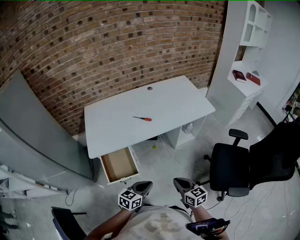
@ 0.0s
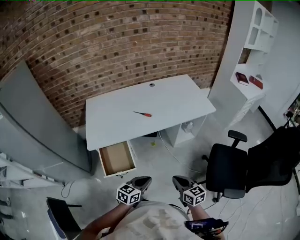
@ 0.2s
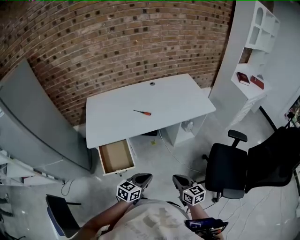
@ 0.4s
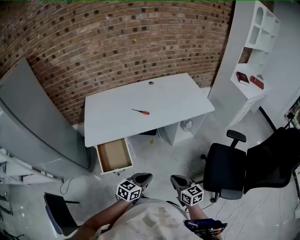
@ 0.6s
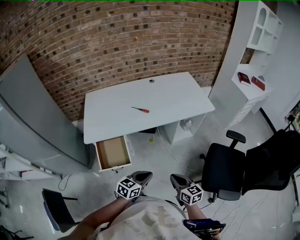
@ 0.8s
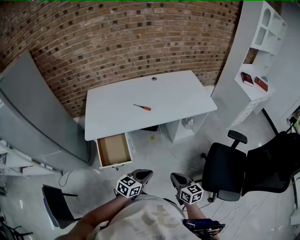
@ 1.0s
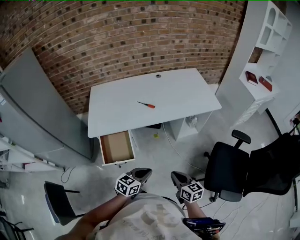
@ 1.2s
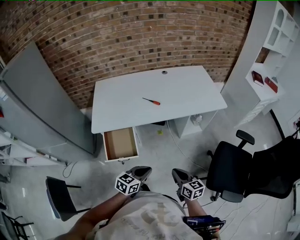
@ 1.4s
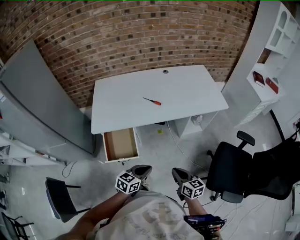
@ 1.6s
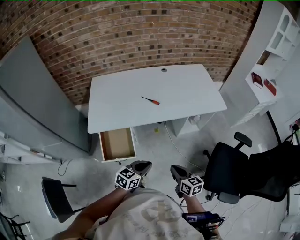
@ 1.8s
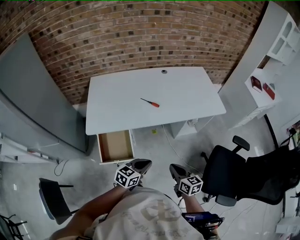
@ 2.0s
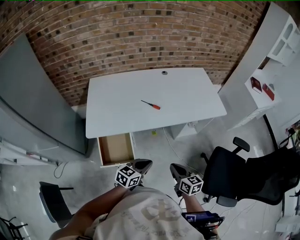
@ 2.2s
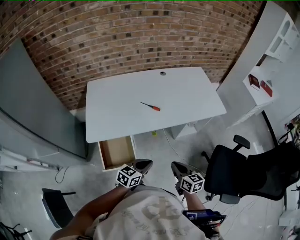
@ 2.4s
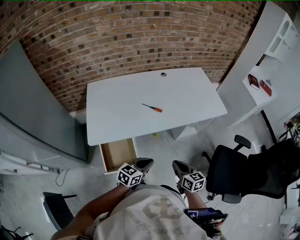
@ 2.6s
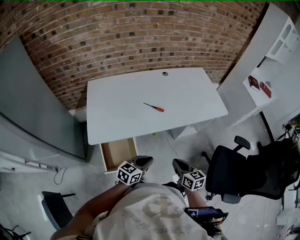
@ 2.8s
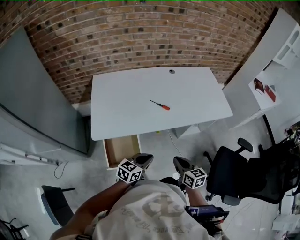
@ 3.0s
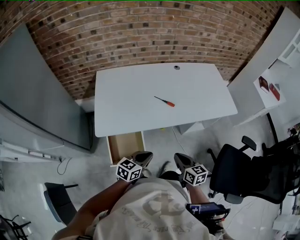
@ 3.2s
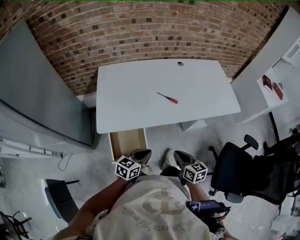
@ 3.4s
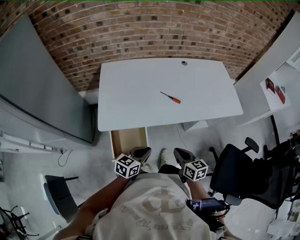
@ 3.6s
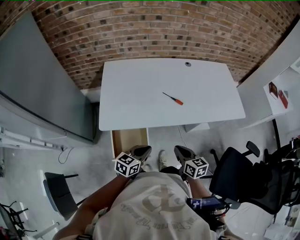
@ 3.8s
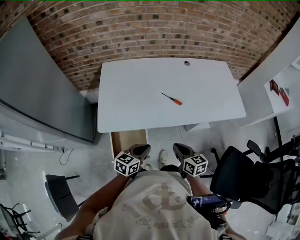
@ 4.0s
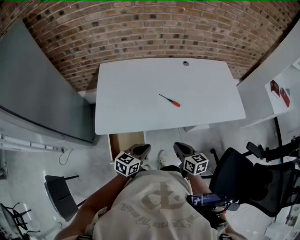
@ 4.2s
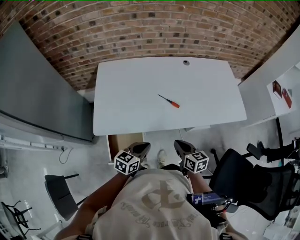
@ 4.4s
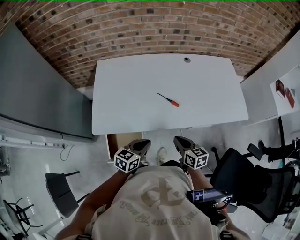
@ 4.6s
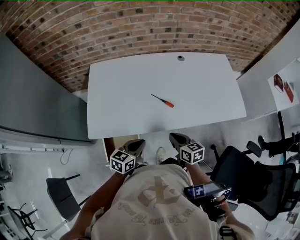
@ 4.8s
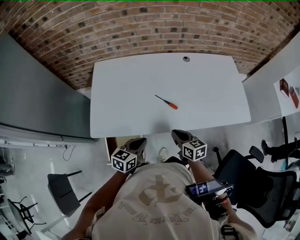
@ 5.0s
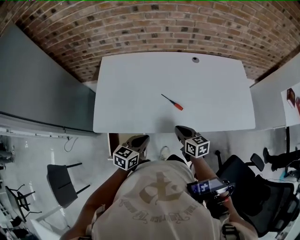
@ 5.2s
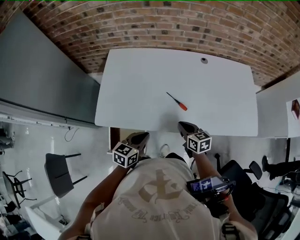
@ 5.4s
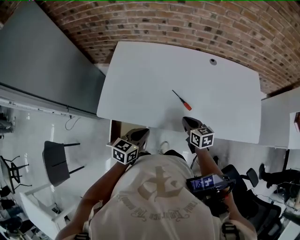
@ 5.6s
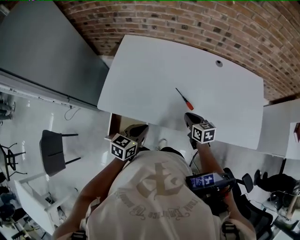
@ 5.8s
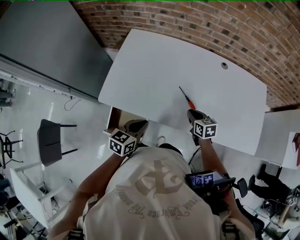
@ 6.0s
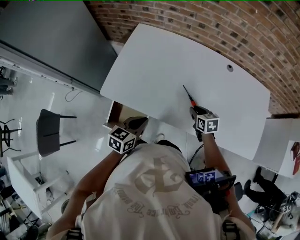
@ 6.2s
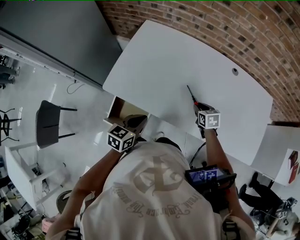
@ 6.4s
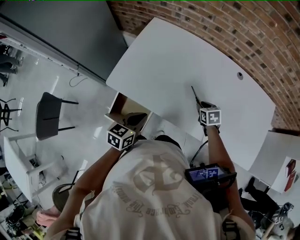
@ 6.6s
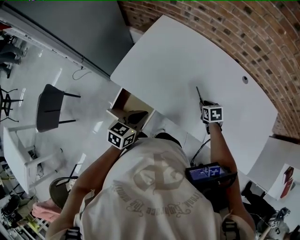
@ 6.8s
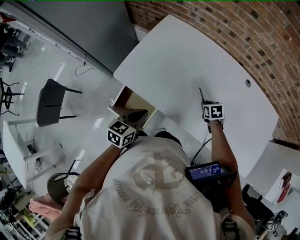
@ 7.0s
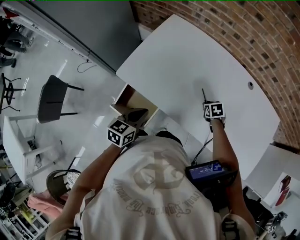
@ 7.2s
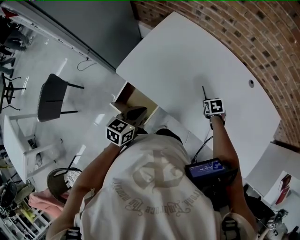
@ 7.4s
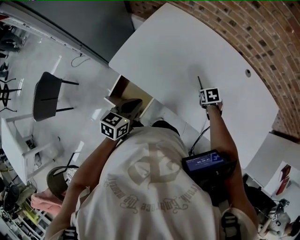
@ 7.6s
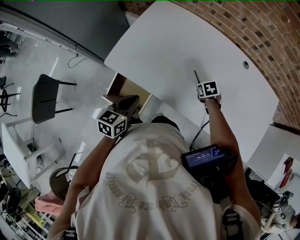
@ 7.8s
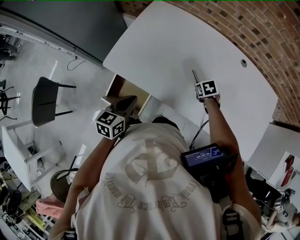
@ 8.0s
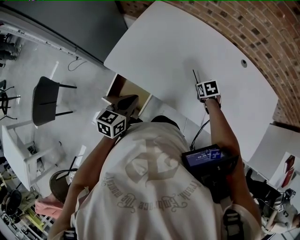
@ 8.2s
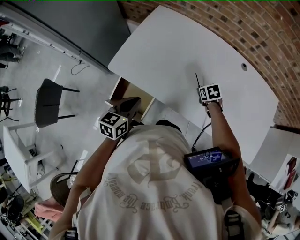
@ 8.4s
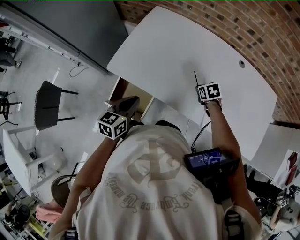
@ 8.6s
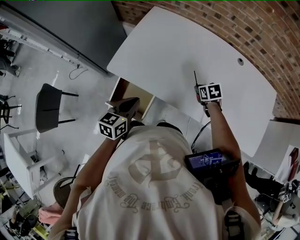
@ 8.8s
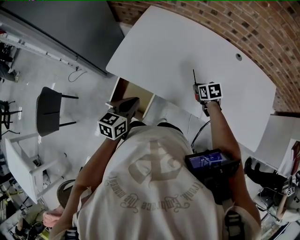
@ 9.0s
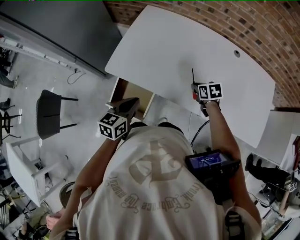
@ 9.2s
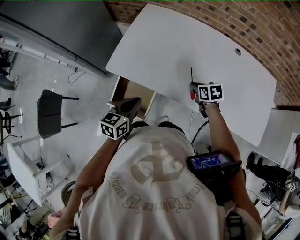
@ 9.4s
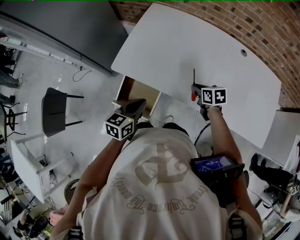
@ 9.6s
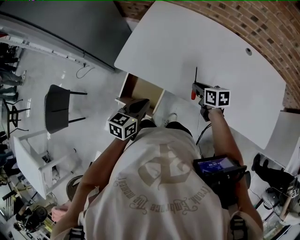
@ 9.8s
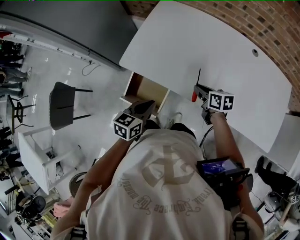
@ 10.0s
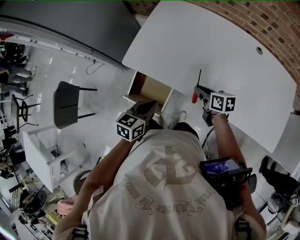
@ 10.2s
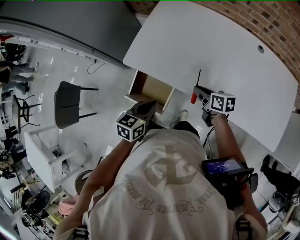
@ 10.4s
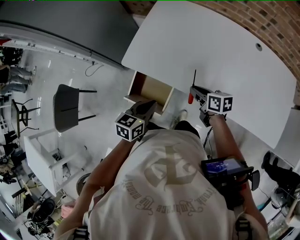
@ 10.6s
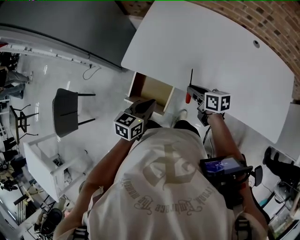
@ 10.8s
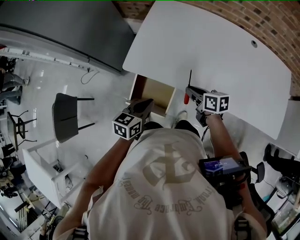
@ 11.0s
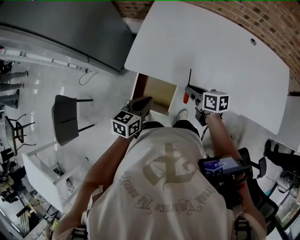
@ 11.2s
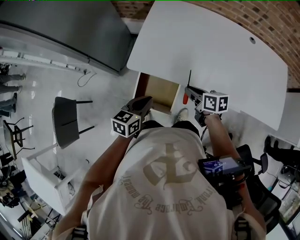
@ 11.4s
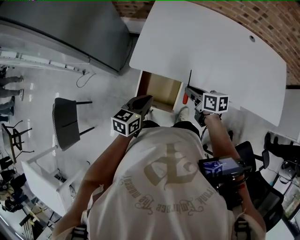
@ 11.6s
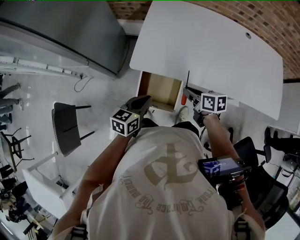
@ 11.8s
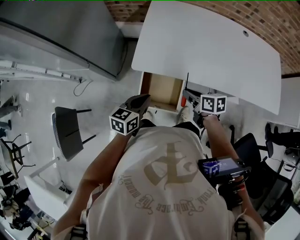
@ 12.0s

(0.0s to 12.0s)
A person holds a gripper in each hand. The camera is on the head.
0.0s - 1.6s: The grippers make only small movements.
1.6s - 3.0s: The grippers both shift forward and to the left by about 15 cm.
3.0s - 4.4s: Both grippers move forward, about 10 cm.
4.4s - 6.0s: The right gripper heads forward, covering roughly 20 cm, and rotates roughly 30 degrees, while the left gripper heads forward, covering approximately 10 cm, and turns by about 20 degrees.
6.0s - 7.6s: The left gripper shifts about 5 cm to the left, while the right gripper moves forward and downward, about 10 cm, and tips its fingers downward by approximately 30 degrees.
7.6s - 9.0s: The right gripper is displaced upward by some 5 cm.
9.0s - 10.4s: The right gripper goes some 10 cm to the left and backward, and turns by approximately 40 degrees.
10.4s - 12.0s: Both grippers move to the left, some 20 cm.

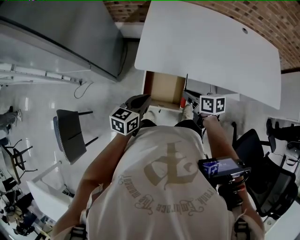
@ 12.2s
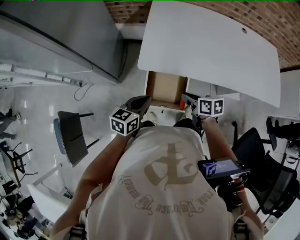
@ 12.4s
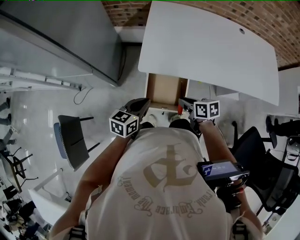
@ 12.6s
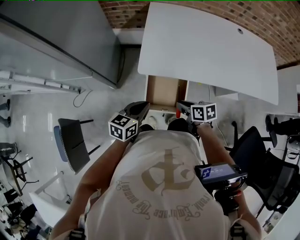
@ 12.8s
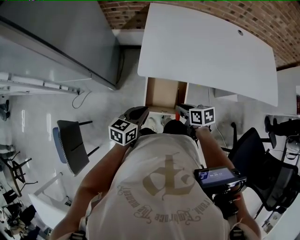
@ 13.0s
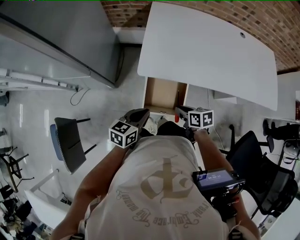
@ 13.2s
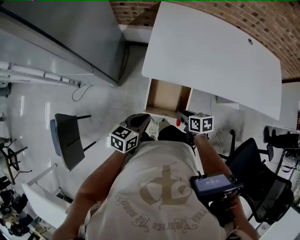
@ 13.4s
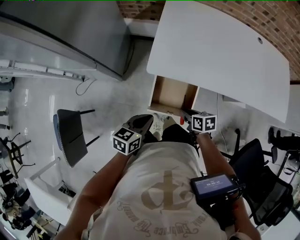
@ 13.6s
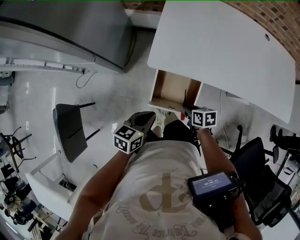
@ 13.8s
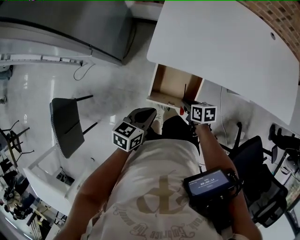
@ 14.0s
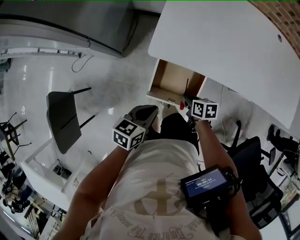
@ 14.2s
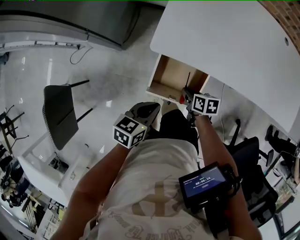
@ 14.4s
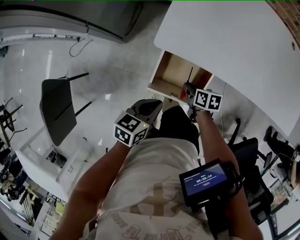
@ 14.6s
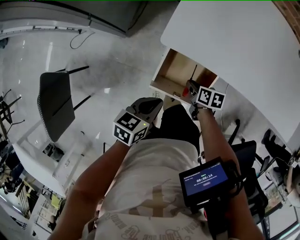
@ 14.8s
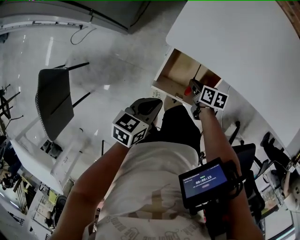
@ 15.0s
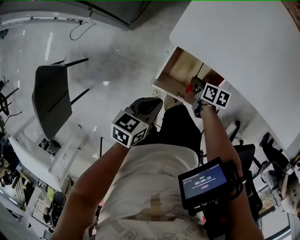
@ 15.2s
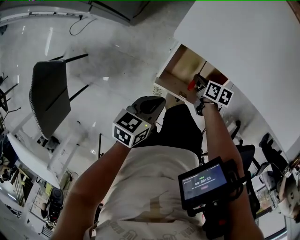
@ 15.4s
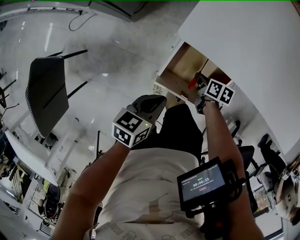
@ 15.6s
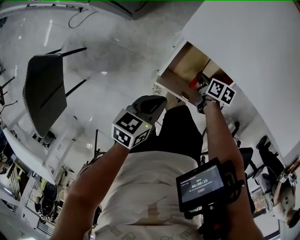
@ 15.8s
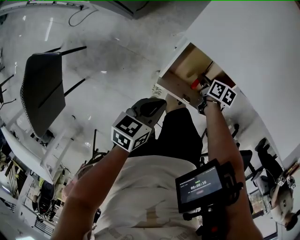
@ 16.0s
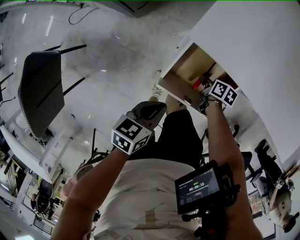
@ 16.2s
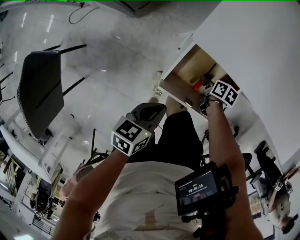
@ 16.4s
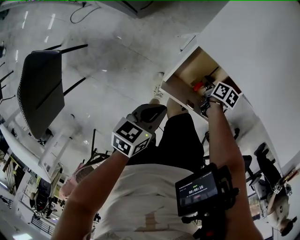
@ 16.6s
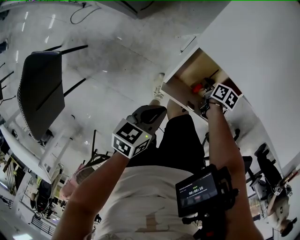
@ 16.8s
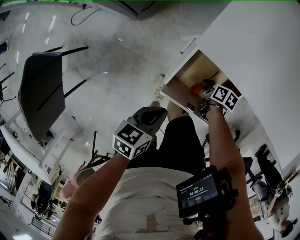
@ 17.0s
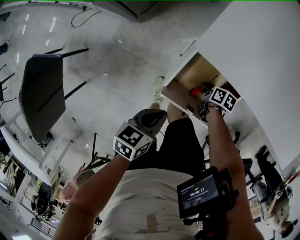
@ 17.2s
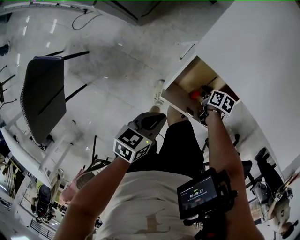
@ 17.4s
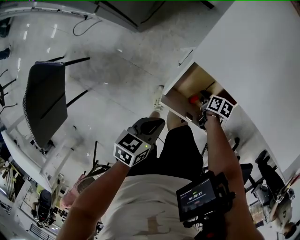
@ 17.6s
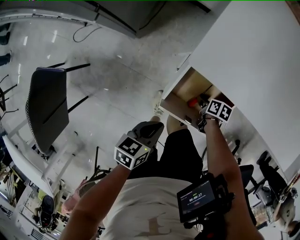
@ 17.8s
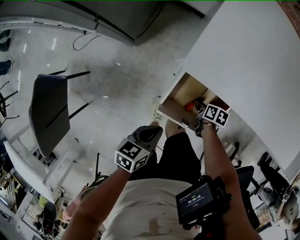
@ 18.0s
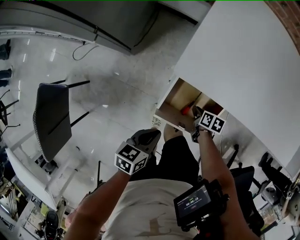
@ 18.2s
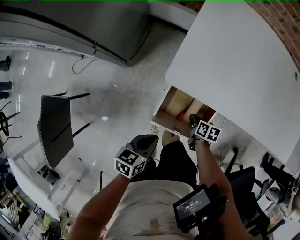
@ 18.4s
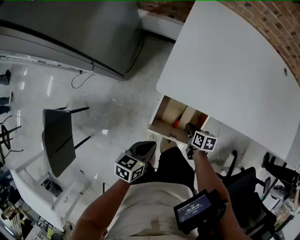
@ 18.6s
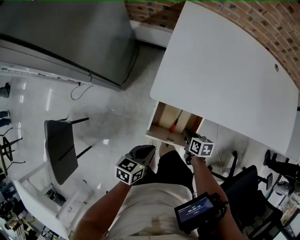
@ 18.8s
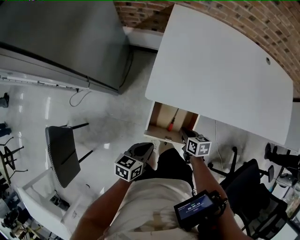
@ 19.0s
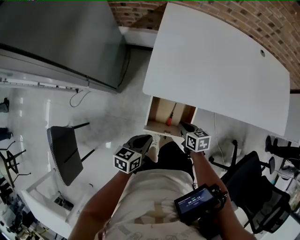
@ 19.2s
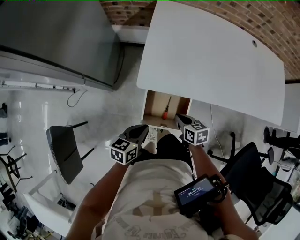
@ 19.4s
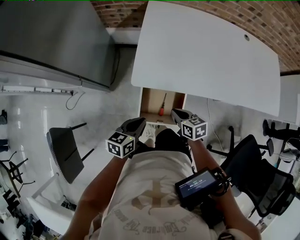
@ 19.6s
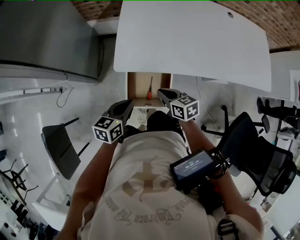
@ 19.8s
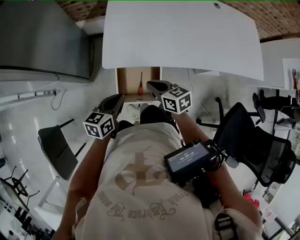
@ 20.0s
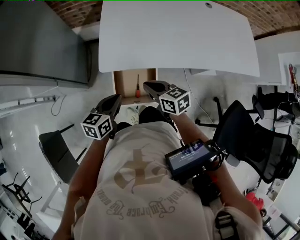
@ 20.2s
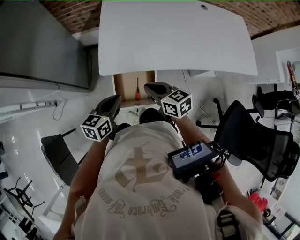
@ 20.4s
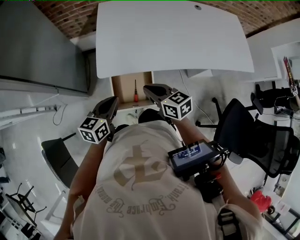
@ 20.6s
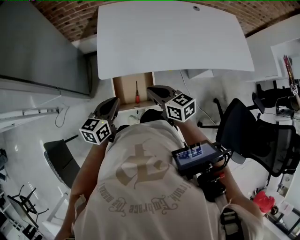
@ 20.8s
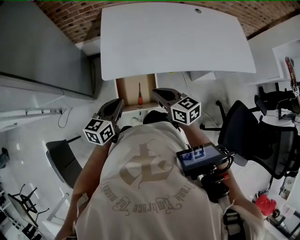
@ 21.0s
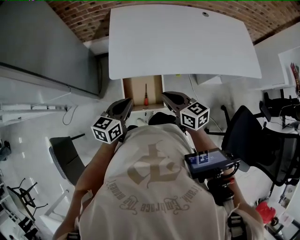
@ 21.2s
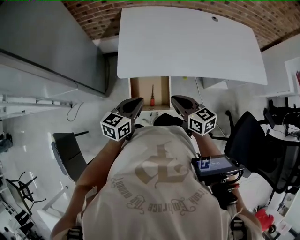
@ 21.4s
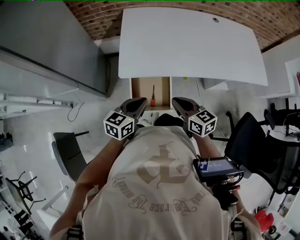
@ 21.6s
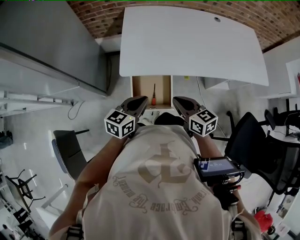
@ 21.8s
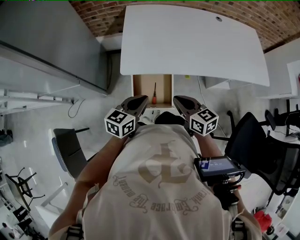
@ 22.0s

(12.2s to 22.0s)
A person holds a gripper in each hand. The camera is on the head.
12.2s - 13.6s: The left gripper goes some 5 cm to the left. The right gripper heads downward and to the left, covering roughly 10 cm.
13.6s - 15.0s: The right gripper heads downward and forward, covering roughly 20 cm, while the left gripper goes roughly 10 cm downward.
15.0s - 16.4s: The left gripper goes approximately 10 cm downward, while the right gripper travels downward by about 10 cm.
16.4s - 17.8s: There are only small adjustments of the grippers.
17.8s - 19.2s: The left gripper heads upward, covering roughly 15 cm. The right gripper moves upward, some 25 cm, turns by roughly 30 degrees, and closes.
19.2s - 20.6s: The right gripper goes approximately 20 cm upward, and swivels some 30 degrees. Meanwhile the left gripper travels upward by some 15 cm.
20.6s - 22.0s: The right gripper moves backward, roughly 5 cm. The left gripper changes place by about 5 cm.

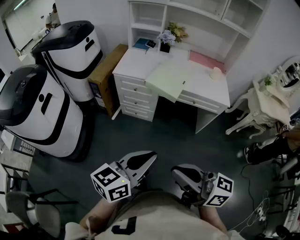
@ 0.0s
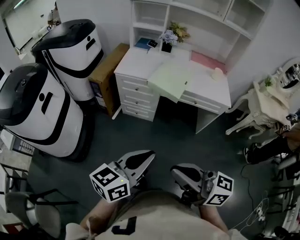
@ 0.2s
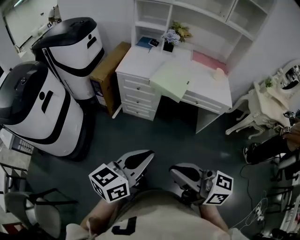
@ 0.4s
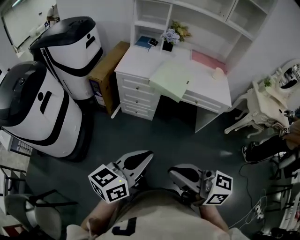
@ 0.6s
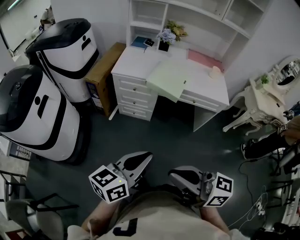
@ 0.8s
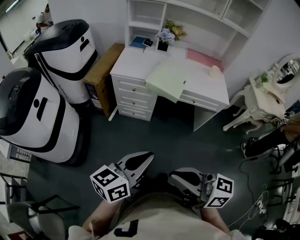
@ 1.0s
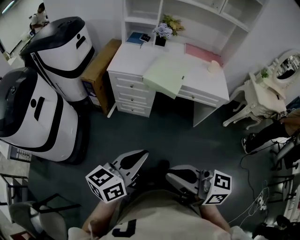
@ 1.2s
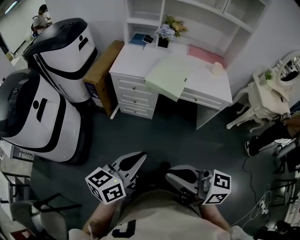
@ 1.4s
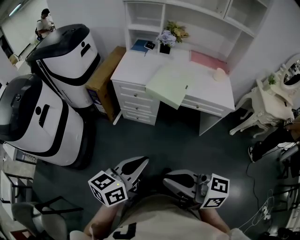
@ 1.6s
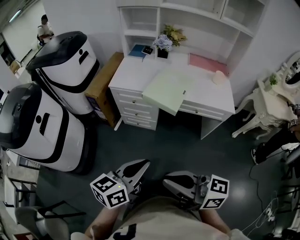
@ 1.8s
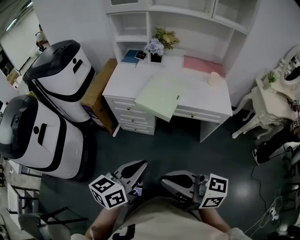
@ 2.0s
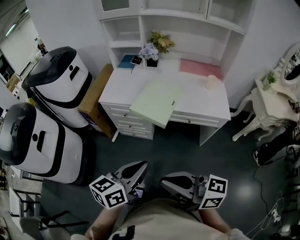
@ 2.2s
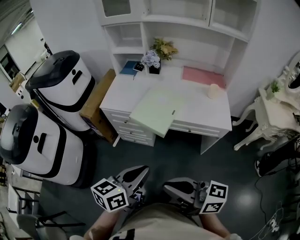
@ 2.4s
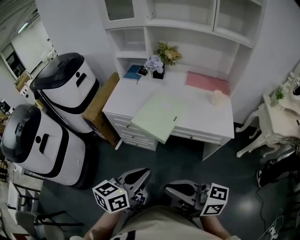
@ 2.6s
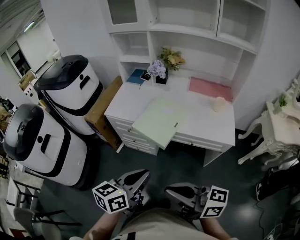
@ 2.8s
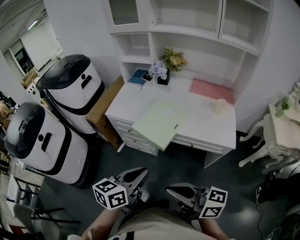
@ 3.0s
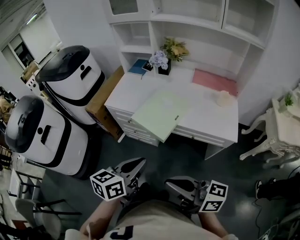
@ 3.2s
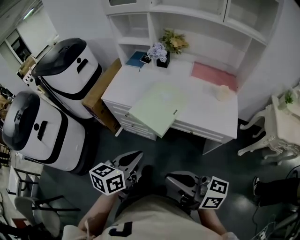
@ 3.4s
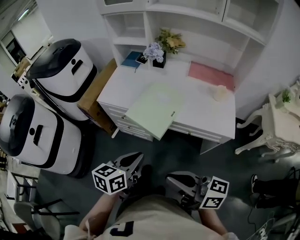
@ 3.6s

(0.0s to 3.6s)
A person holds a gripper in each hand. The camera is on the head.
0.0s - 1.8s: The grippers both shift forward by roughly 10 cm.
1.8s - 3.6s: The left gripper heads forward and to the right, covering approximately 20 cm; the right gripper heads to the right and forward, covering about 20 cm.
